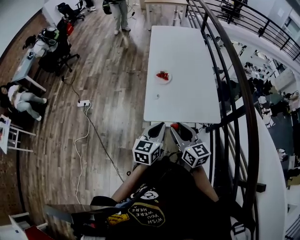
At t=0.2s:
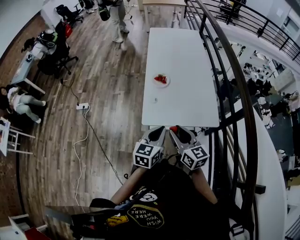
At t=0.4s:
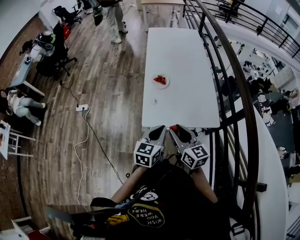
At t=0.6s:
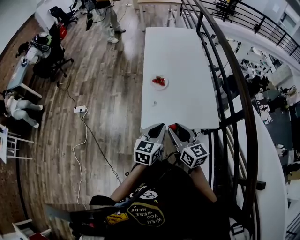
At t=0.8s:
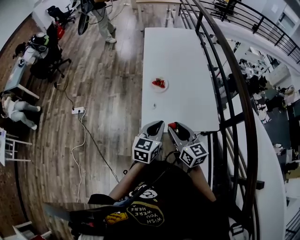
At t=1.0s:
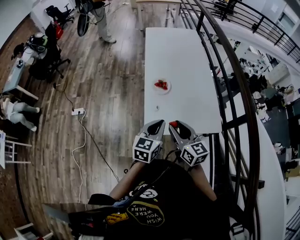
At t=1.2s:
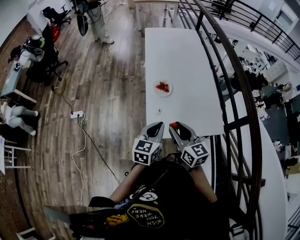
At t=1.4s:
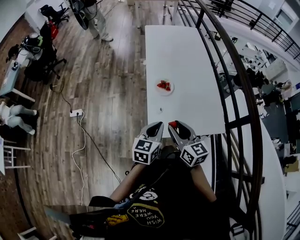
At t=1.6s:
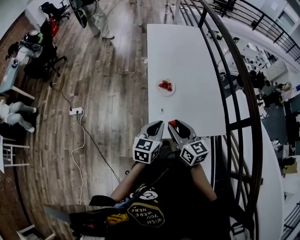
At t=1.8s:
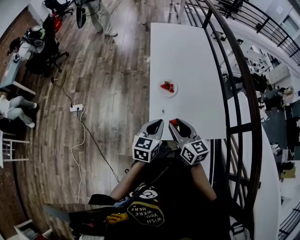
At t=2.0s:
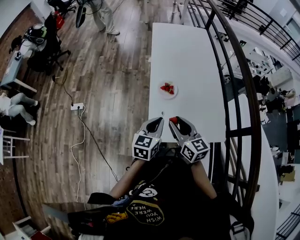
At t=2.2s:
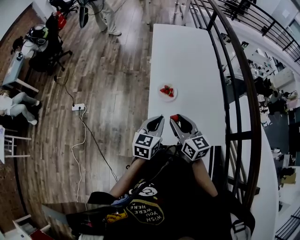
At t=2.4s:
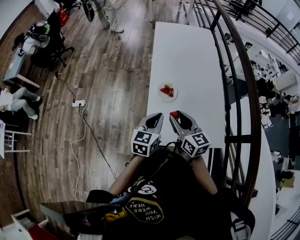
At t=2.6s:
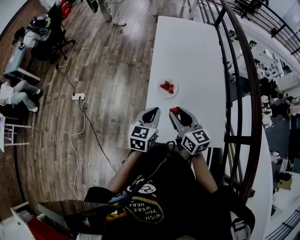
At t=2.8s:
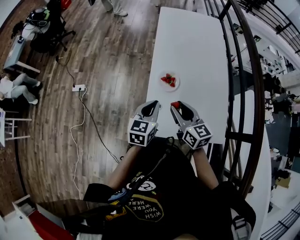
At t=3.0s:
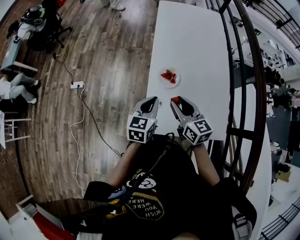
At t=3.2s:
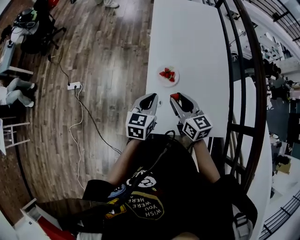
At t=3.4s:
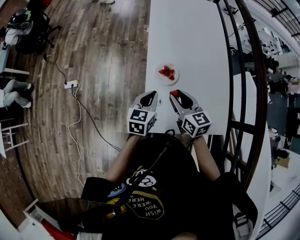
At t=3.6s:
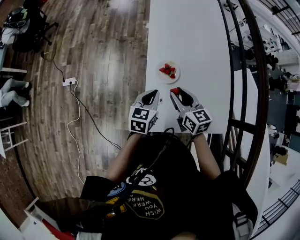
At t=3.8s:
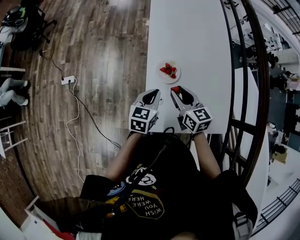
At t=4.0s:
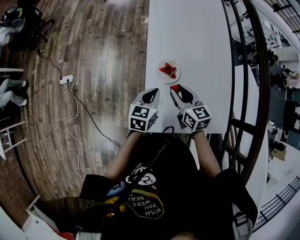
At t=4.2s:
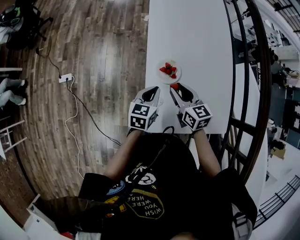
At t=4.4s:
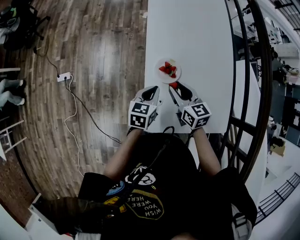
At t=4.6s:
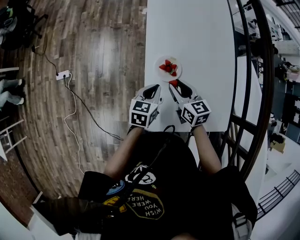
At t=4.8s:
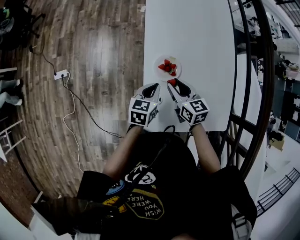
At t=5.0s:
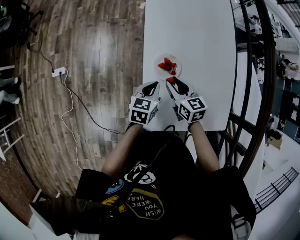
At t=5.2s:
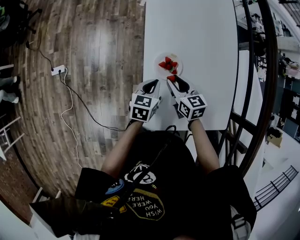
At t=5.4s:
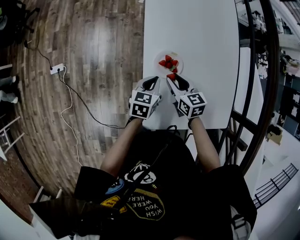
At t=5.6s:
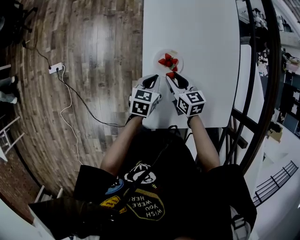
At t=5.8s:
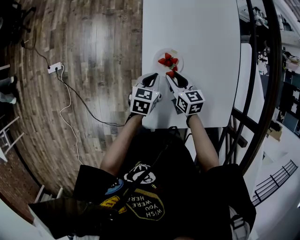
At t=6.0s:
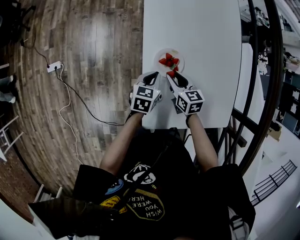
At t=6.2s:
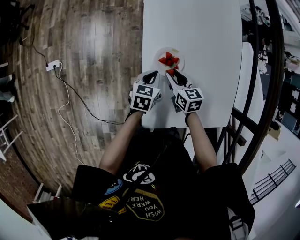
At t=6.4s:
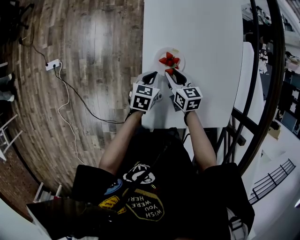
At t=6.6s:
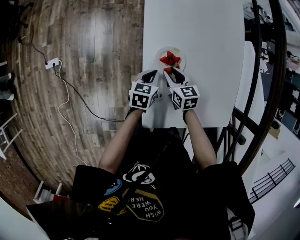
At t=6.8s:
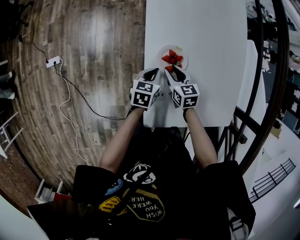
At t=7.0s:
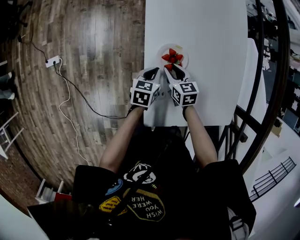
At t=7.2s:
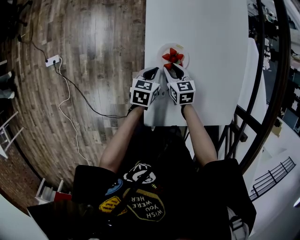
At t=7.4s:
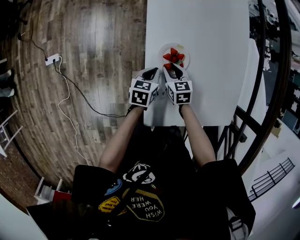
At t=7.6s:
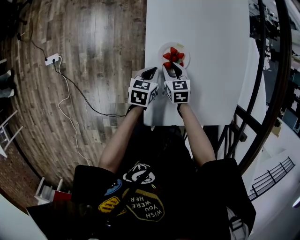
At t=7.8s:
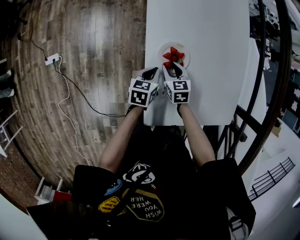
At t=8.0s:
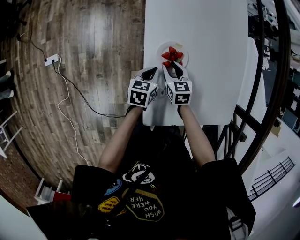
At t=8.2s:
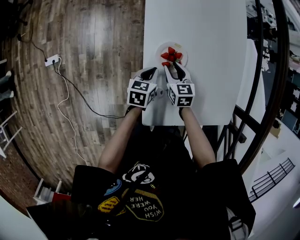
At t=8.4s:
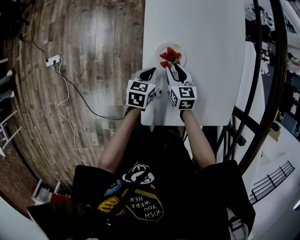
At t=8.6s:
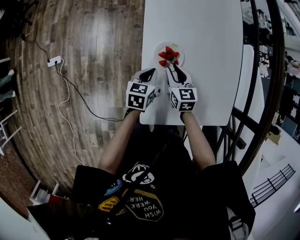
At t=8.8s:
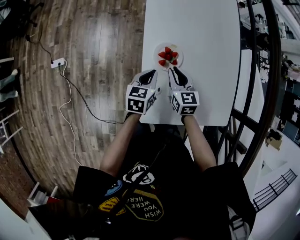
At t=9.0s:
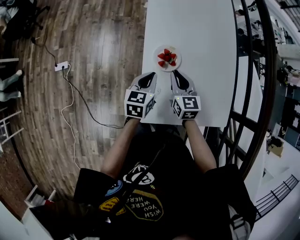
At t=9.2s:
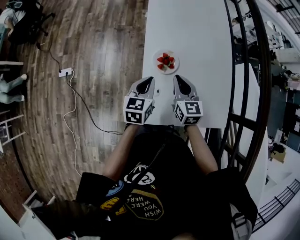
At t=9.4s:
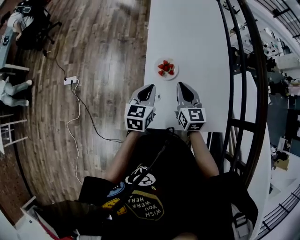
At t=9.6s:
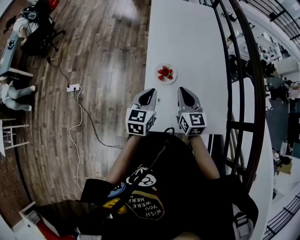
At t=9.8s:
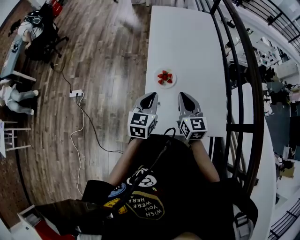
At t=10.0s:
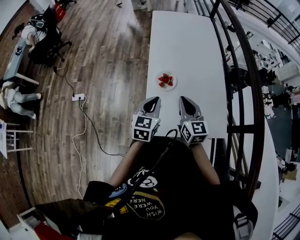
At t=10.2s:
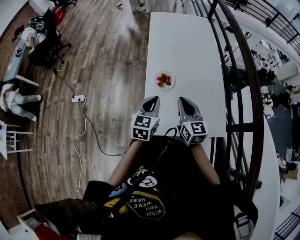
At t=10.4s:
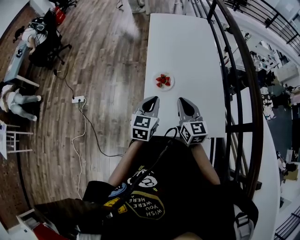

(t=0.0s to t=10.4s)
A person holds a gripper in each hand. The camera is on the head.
t=0.0s - t=1.4s: The two grippers go roughly 15 cm forward and to the left.
t=1.4s - t=3.0s: The two grippers go approximately 15 cm forward.
t=3.0s - t=4.4s: The left gripper is displaced downward and forward by approximately 15 cm. The right gripper heads forward and downward, covering roughly 15 cm.
t=4.4s - t=6.0s: Both grippers move downward, roughly 10 cm.
t=6.0s - t=7.4s: The right gripper moves downward, approximately 10 cm. The left gripper heads downward, covering roughly 5 cm.
t=7.4s - t=9.0s: The grippers both shift upward by roughly 15 cm. The right gripper turns by approximately 20 degrees, and closes.
t=9.0s - t=10.4s: The left gripper goes about 15 cm upward and backward. Meanwhile the right gripper heads upward, backward and to the right, covering approximately 20 cm.

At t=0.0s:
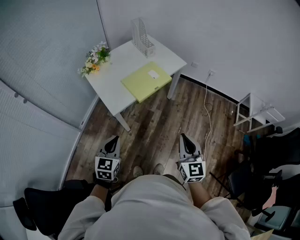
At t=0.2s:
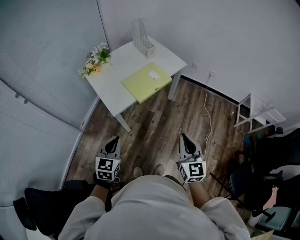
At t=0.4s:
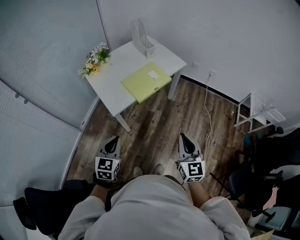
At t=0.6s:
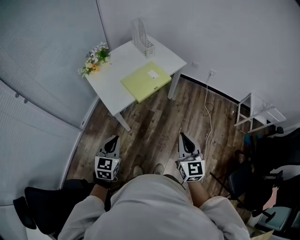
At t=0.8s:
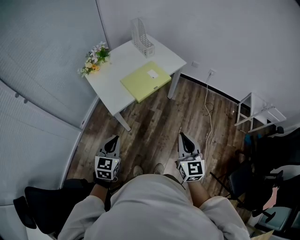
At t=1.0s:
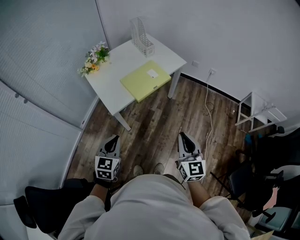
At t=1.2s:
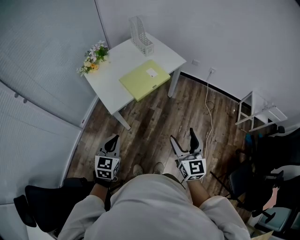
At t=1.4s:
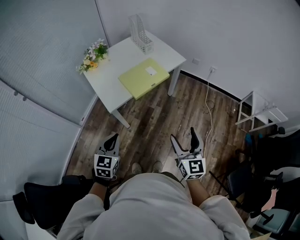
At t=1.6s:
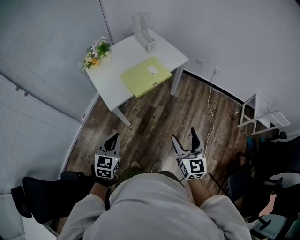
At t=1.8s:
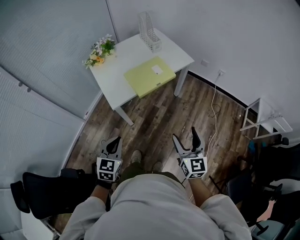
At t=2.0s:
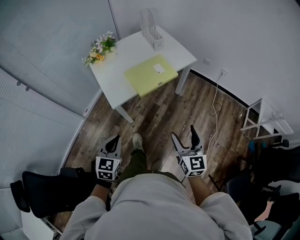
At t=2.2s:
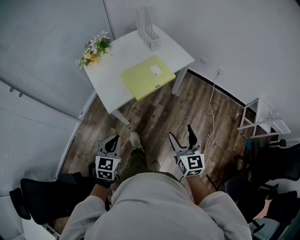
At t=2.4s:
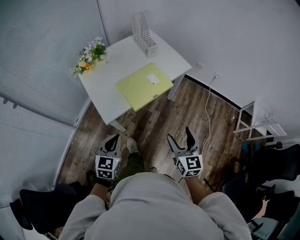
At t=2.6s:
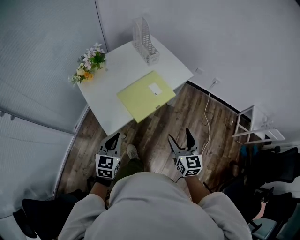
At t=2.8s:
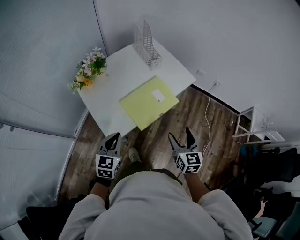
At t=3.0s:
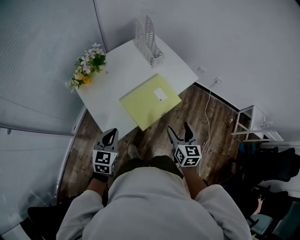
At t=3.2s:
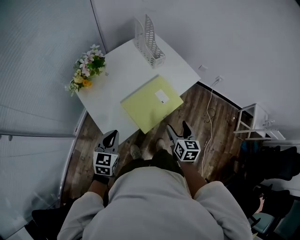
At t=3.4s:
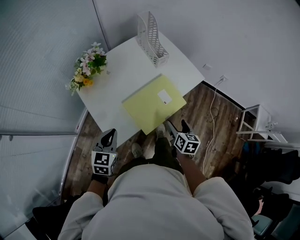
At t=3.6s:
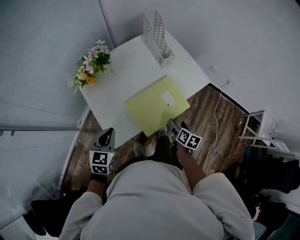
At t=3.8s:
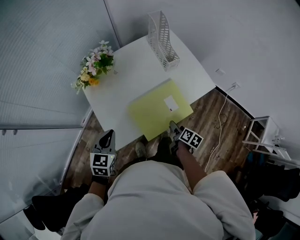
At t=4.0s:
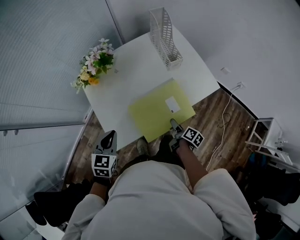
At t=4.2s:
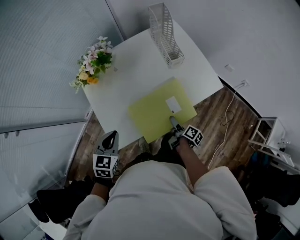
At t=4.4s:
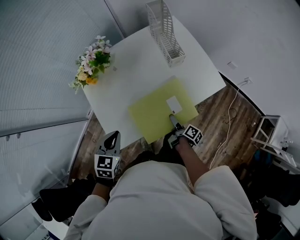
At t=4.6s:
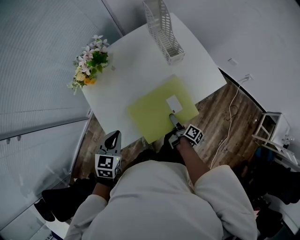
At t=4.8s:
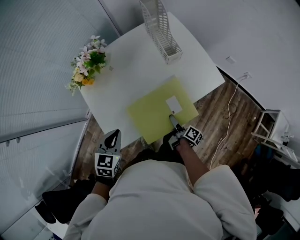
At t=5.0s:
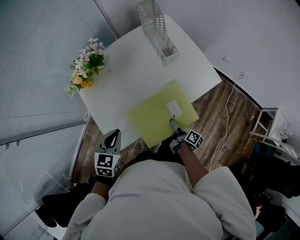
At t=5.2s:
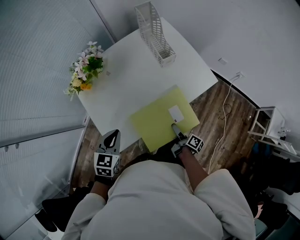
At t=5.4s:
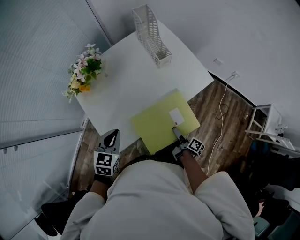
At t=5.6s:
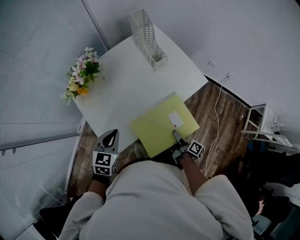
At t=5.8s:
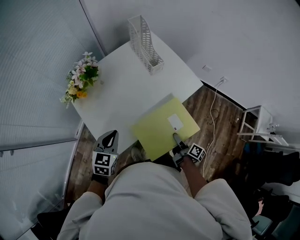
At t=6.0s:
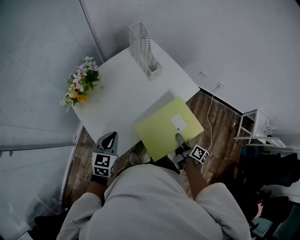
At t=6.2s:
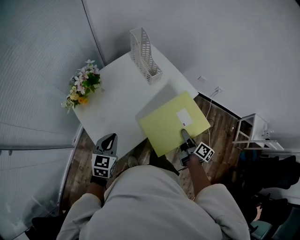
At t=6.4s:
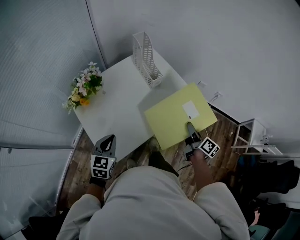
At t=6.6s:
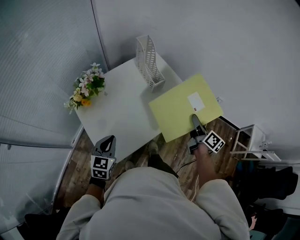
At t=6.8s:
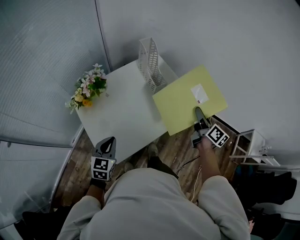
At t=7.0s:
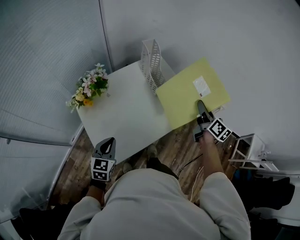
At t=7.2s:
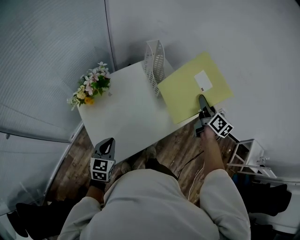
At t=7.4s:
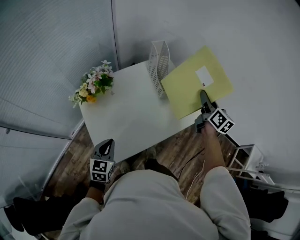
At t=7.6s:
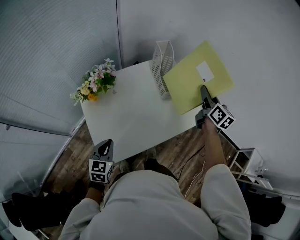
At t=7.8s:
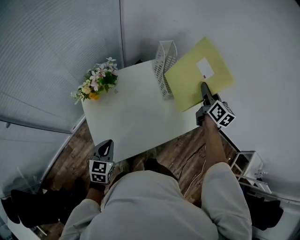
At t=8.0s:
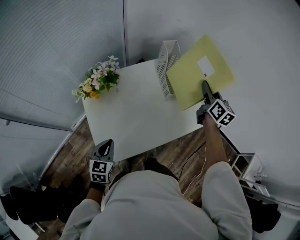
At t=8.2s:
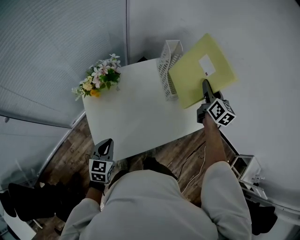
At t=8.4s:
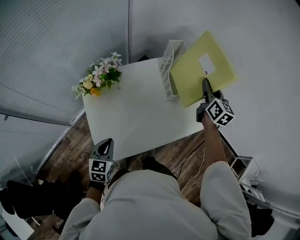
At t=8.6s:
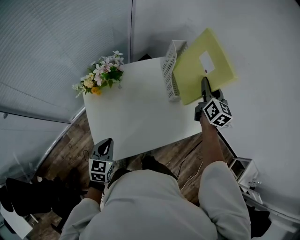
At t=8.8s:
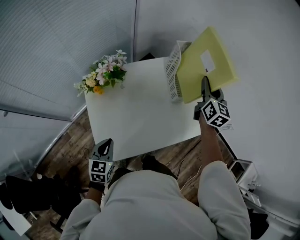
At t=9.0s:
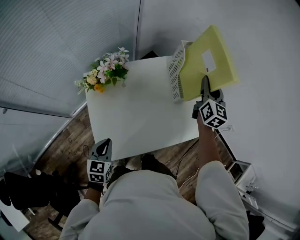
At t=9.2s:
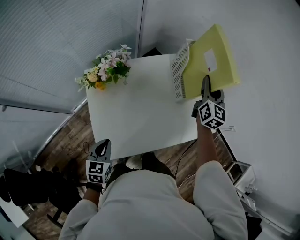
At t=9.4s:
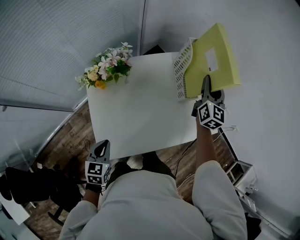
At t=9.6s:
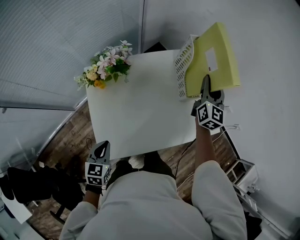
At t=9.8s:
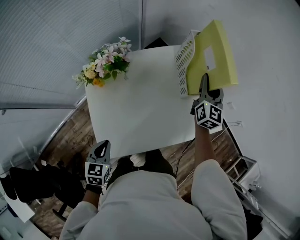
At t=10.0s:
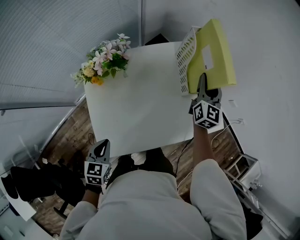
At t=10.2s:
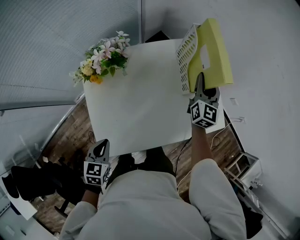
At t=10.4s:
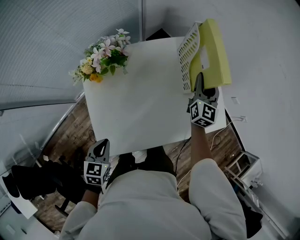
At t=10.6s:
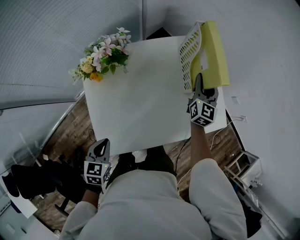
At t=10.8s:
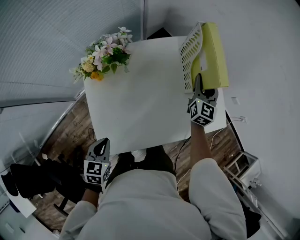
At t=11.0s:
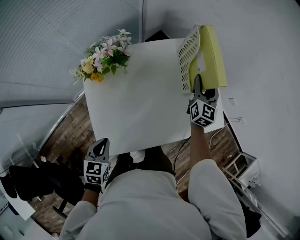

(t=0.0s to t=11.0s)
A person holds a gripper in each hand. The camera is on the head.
t=0.0s - t=1.6s: The two grippers go roughly 5 cm to the right. The right gripper opens.
t=1.6s - t=3.2s: The grippers both shift forward by about 35 cm. The right gripper changes its angle by approximately 30 degrees.
t=3.2s - t=4.8s: The right gripper heads downward and forward, covering about 25 cm, and rolls clockwise, seen from behind, by about 60 degrees. The left gripper is displaced forward by roughly 10 cm.
t=4.8s - t=6.2s: The right gripper goes approximately 20 cm upward and to the right, and turns by about 30 degrees.
t=6.2s - t=7.8s: The right gripper is displaced forward and upward by approximately 40 cm, and rolls counterclockwise, seen from behind, by roughly 40 degrees.
t=7.8s - t=9.4s: The right gripper heads to the left and forward, covering about 15 cm, and changes its angle by some 20 degrees. The left gripper changes place by roughly 5 cm.
t=9.4s - t=11.0s: The right gripper shifts about 10 cm downward.

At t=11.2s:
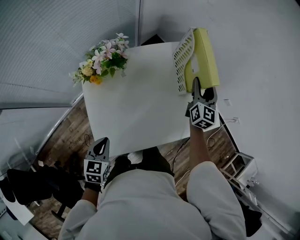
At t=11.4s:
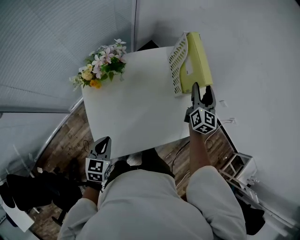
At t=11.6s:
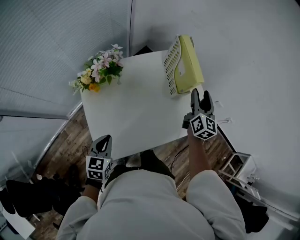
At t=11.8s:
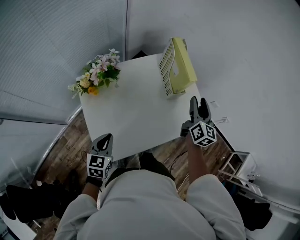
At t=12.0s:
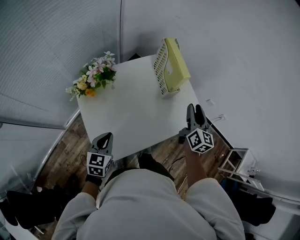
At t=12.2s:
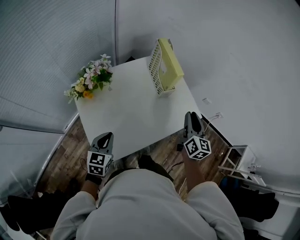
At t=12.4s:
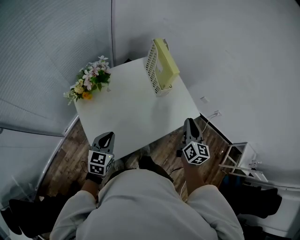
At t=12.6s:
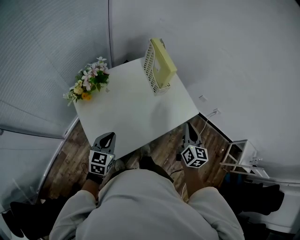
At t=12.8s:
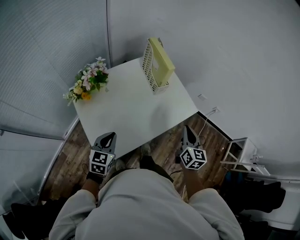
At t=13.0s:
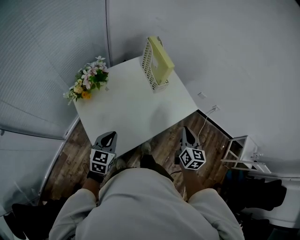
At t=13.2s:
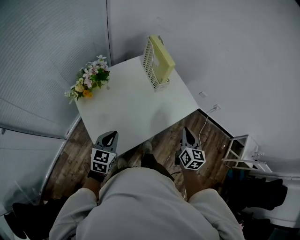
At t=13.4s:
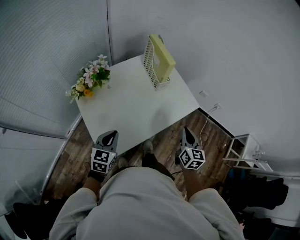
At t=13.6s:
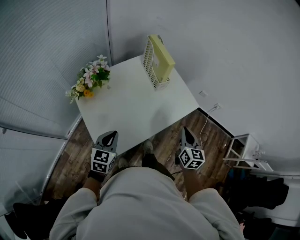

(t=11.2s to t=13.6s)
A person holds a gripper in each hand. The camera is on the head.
t=11.2s - t=12.4s: The left gripper travels upward and to the right by approximately 10 cm, and changes its angle by roughly 20 degrees. The right gripper heads backward, covering about 25 cm, and closes up.
t=12.4s - t=13.6s: The right gripper goes some 10 cm backward.
